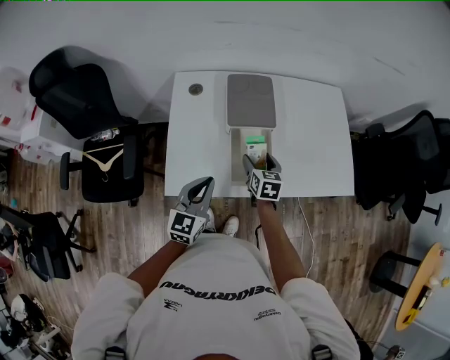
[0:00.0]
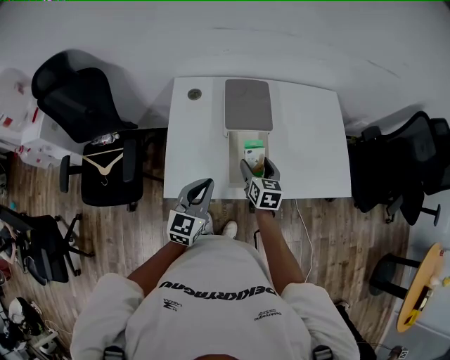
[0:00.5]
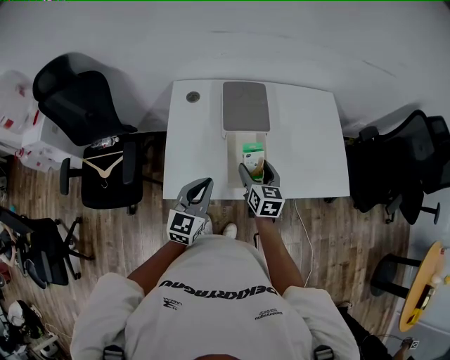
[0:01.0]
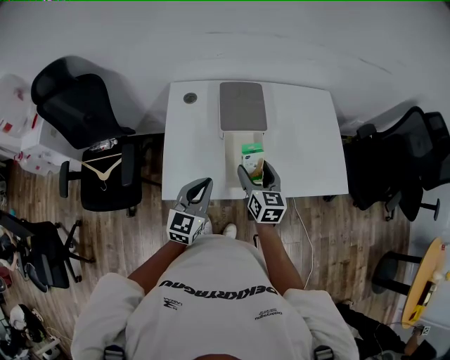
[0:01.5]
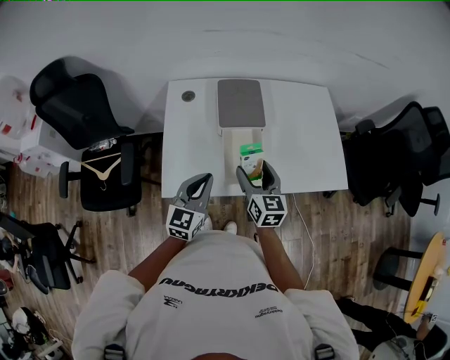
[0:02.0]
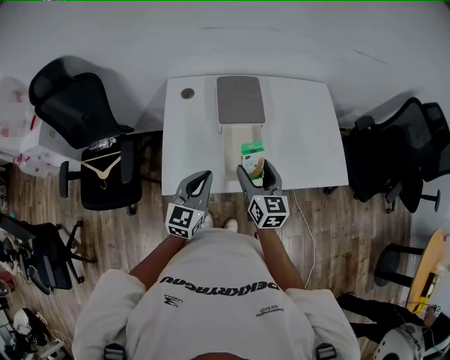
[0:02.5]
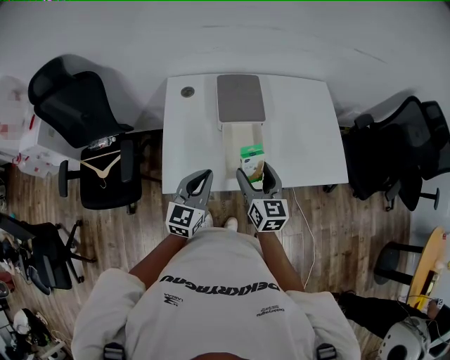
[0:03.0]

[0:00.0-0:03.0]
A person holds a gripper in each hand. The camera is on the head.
0:00.0 to 0:01.5: The right gripper is displaced upward and backward by approximately 10 cm.
0:01.5 to 0:03.0: The right gripper moves roughly 5 cm.

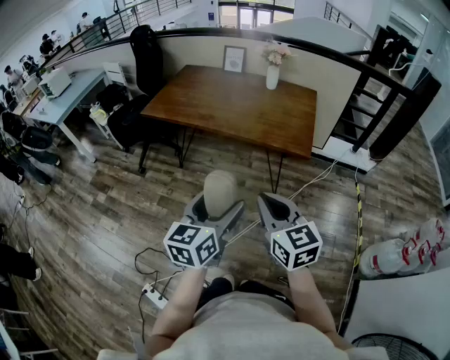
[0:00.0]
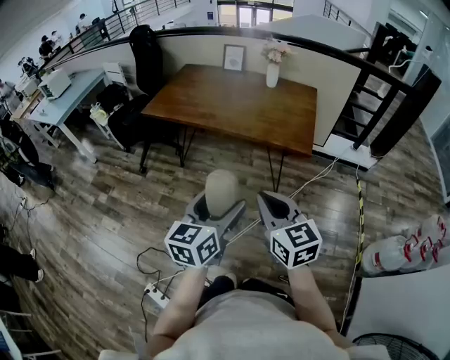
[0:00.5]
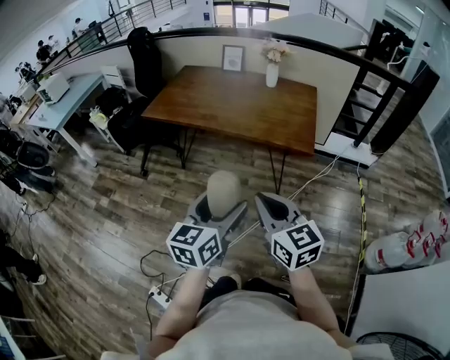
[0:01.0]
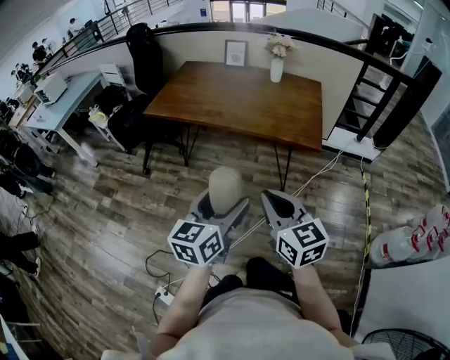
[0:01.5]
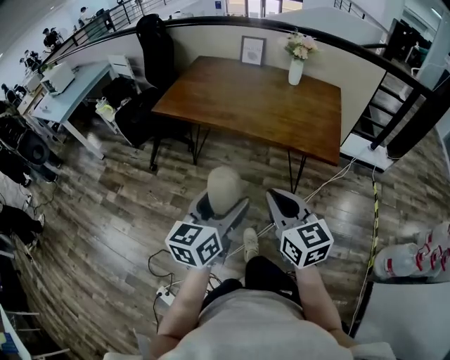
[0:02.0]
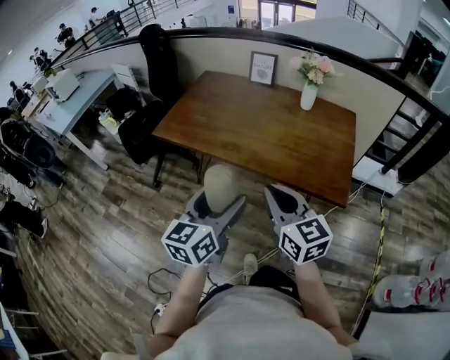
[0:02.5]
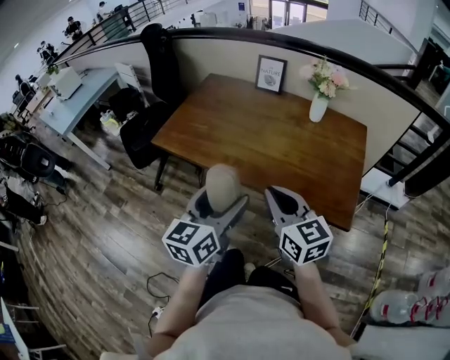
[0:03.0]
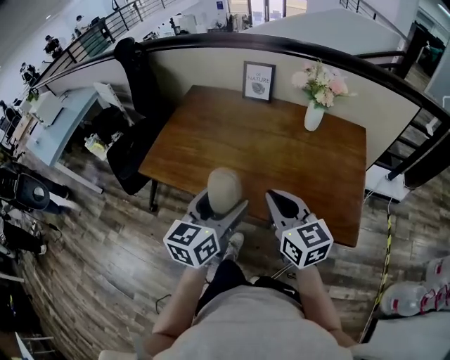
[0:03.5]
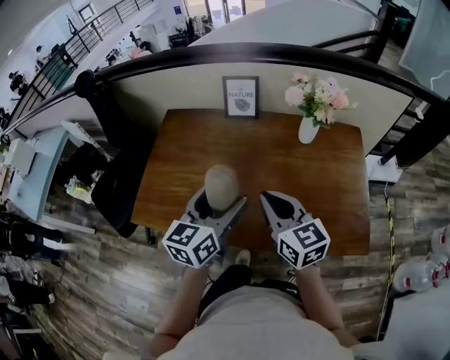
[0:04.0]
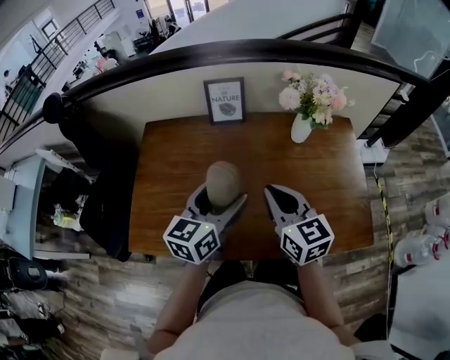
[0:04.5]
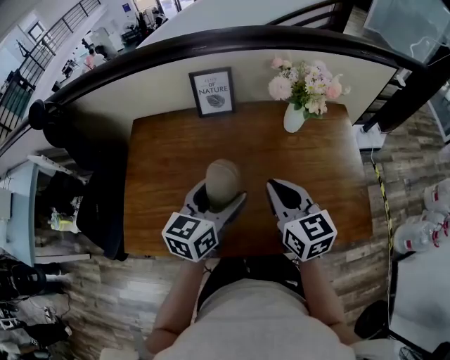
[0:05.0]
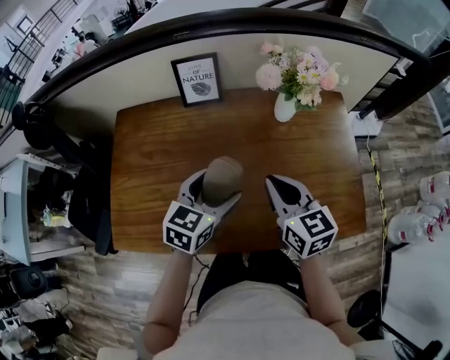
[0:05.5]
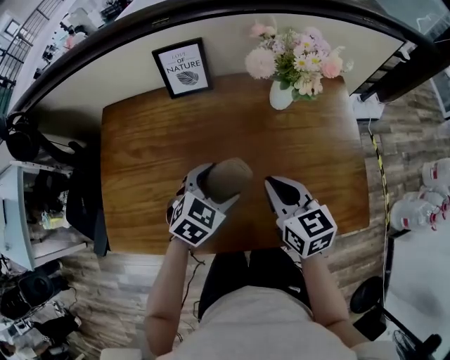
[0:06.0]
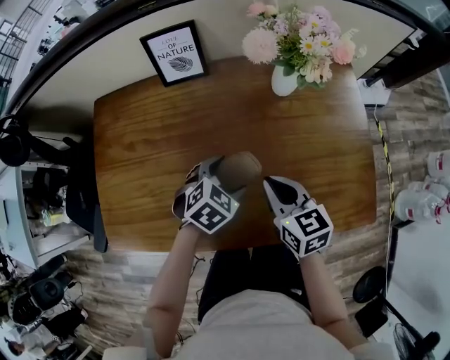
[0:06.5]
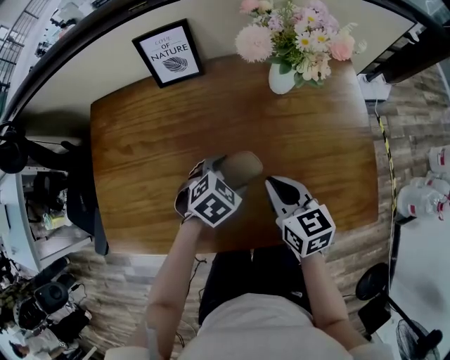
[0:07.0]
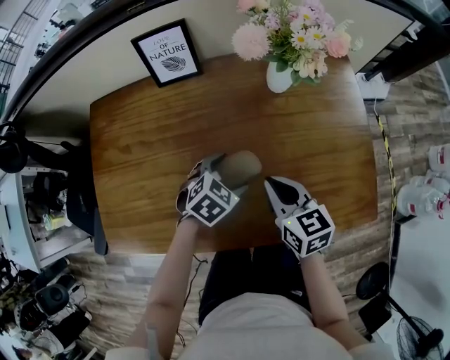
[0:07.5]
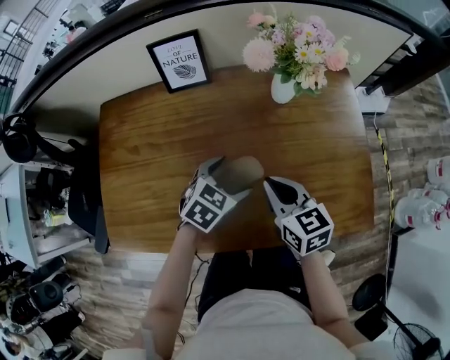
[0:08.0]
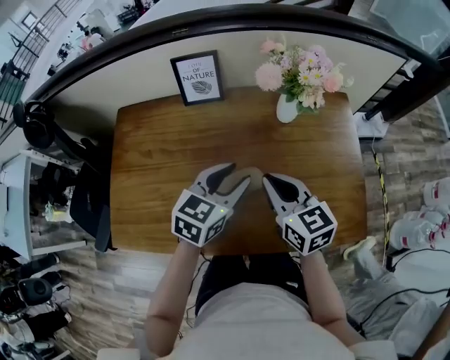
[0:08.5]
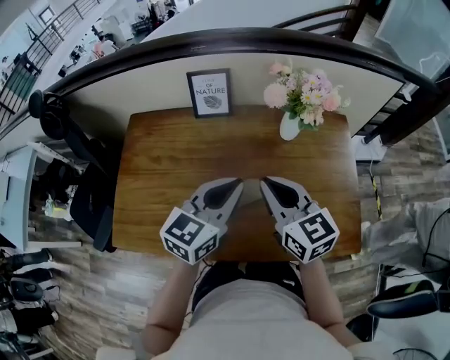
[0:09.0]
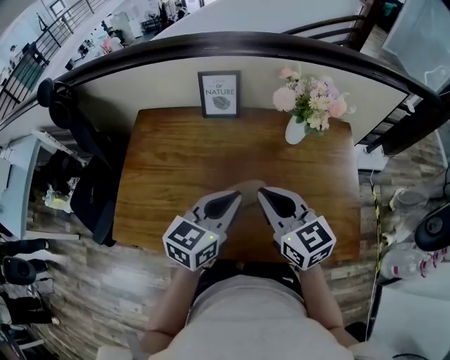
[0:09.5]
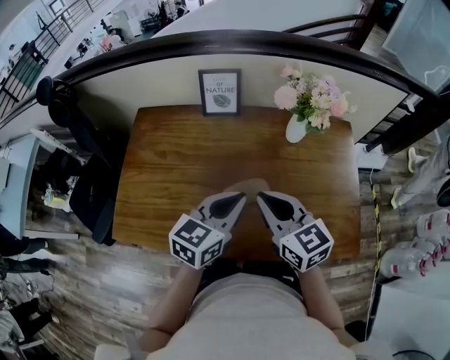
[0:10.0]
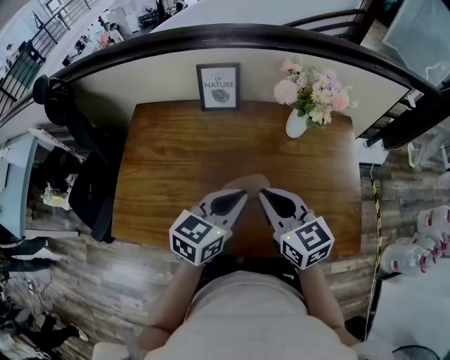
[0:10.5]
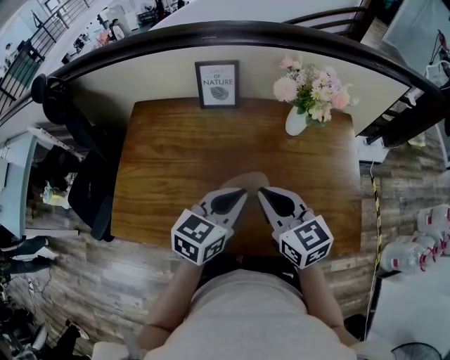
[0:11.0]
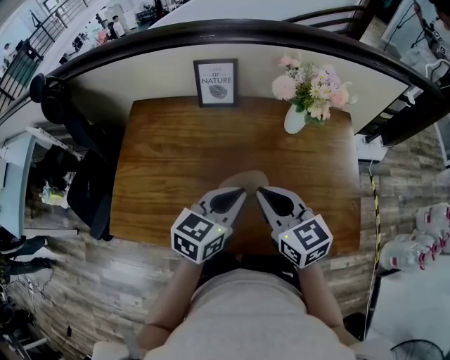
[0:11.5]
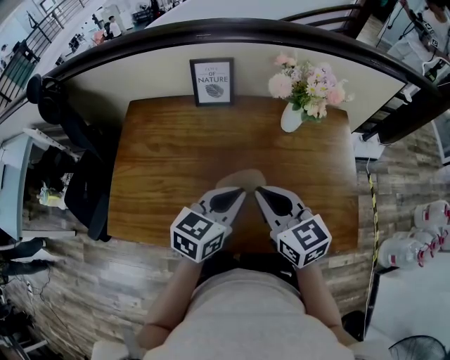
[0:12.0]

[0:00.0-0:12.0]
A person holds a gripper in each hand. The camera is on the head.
0:00.0 to 0:02.0: Both grippers move forward and to the left, approximately 10 cm.
0:02.0 to 0:04.0: The two grippers travel together, forward, some 50 cm.
0:04.0 to 0:06.0: The left gripper goes about 20 cm downward and forward, and tilts its fingers roughly 40 degrees downward. The right gripper shifts some 15 cm forward, downward and to the right, and changes its angle by some 20 degrees.
0:08.0 to 0:10.0: The left gripper shifts some 15 cm upward, rotates roughly 40 degrees, and closes, while the right gripper travels upward and to the left by about 15 cm.
0:10.0 to 0:12.0: The grippers stay close to where they were, moving slightly.

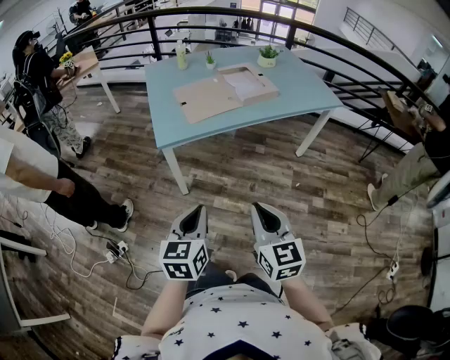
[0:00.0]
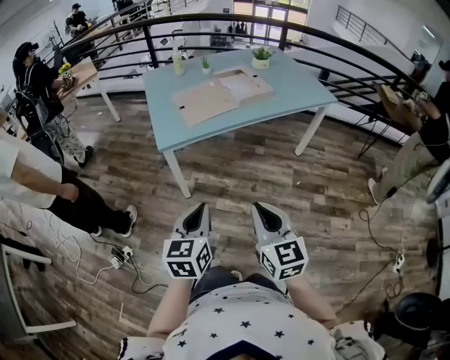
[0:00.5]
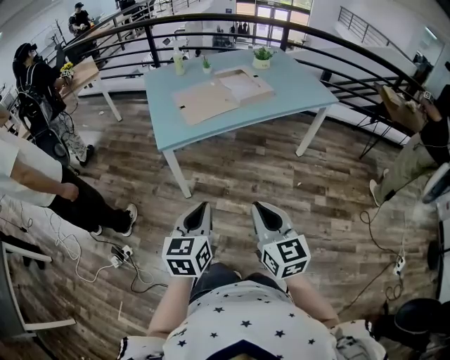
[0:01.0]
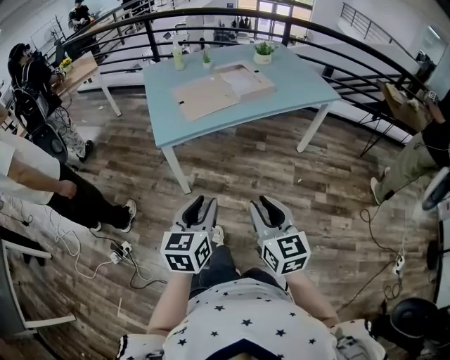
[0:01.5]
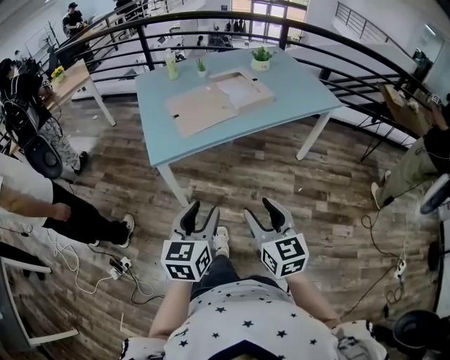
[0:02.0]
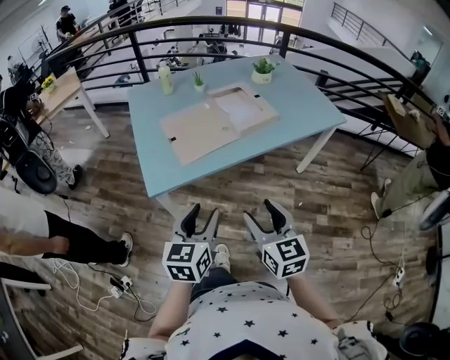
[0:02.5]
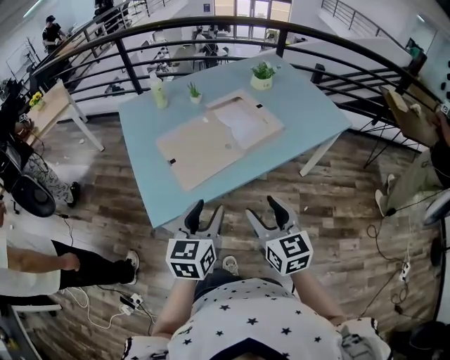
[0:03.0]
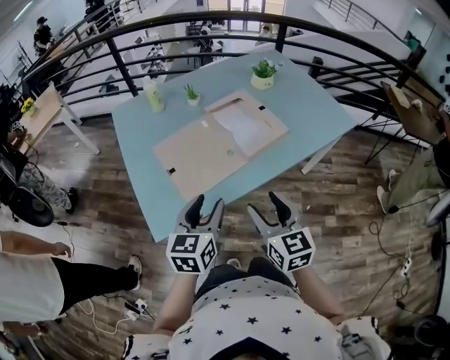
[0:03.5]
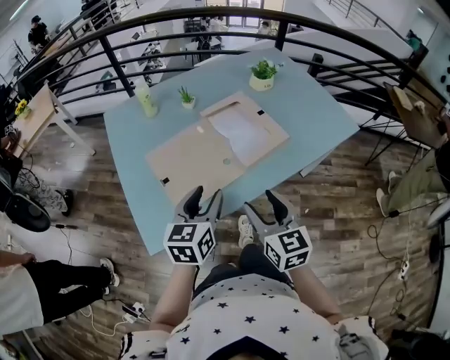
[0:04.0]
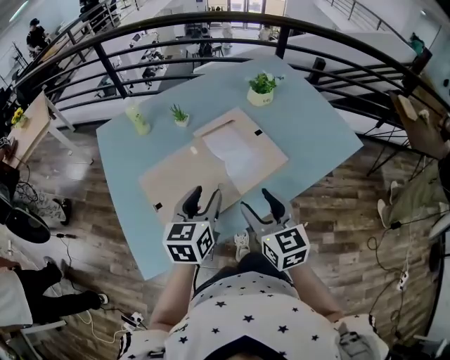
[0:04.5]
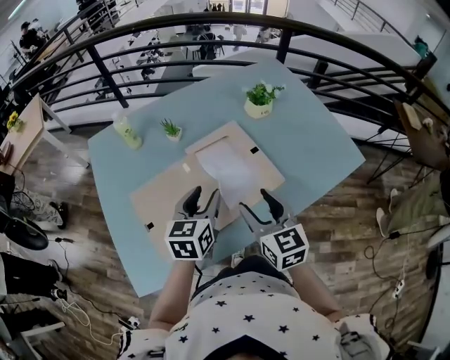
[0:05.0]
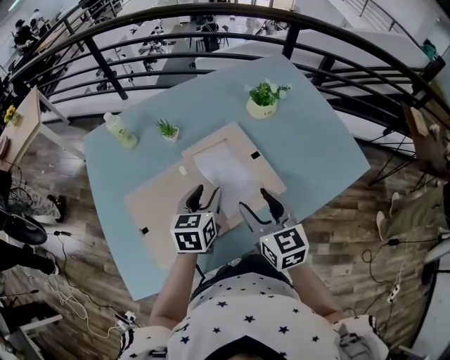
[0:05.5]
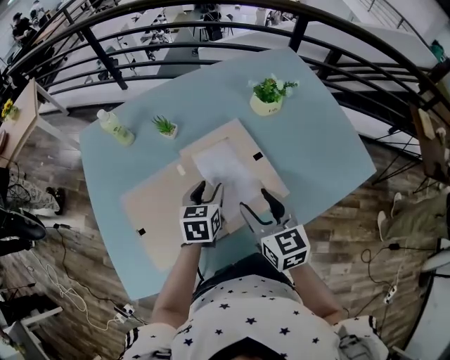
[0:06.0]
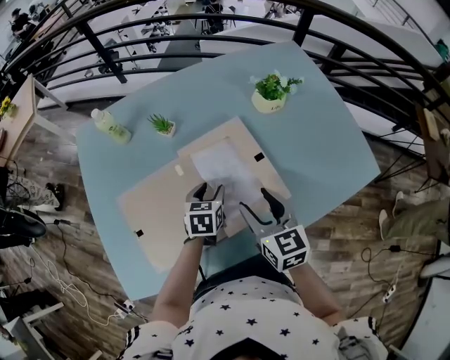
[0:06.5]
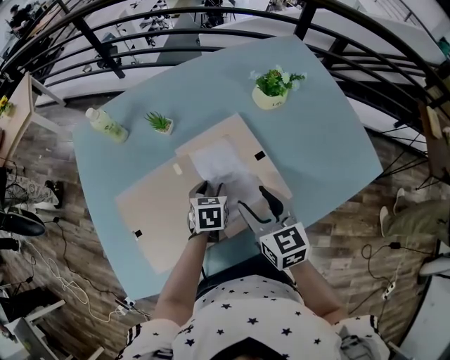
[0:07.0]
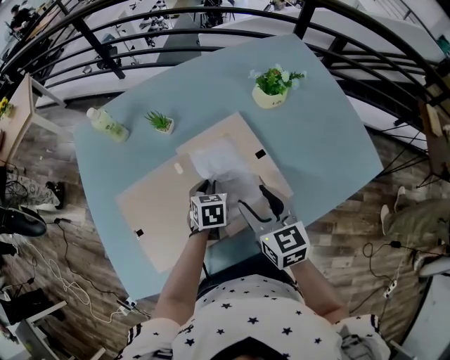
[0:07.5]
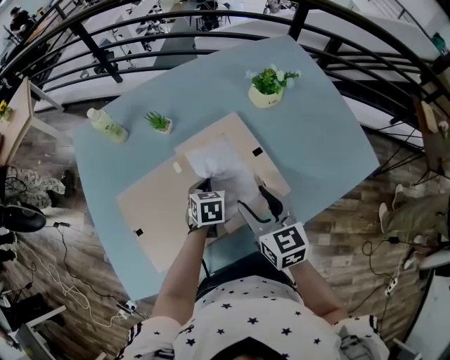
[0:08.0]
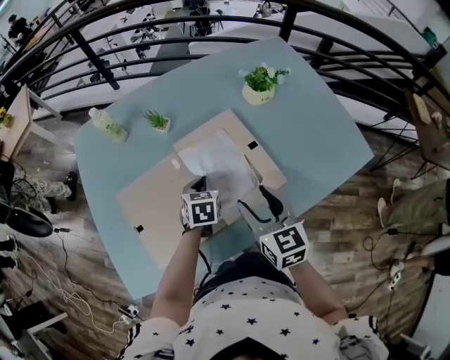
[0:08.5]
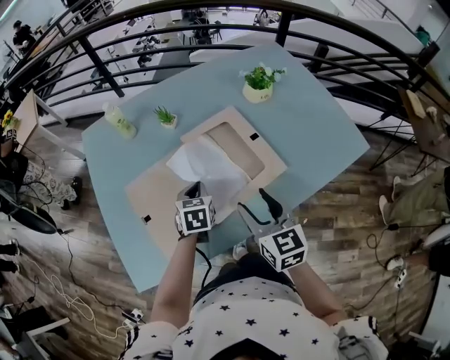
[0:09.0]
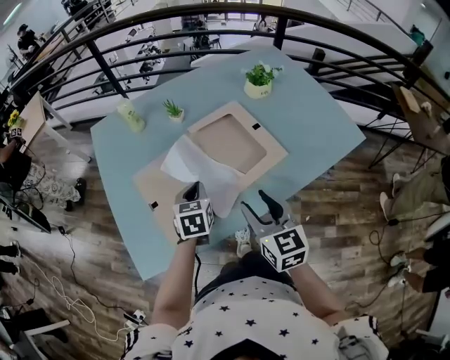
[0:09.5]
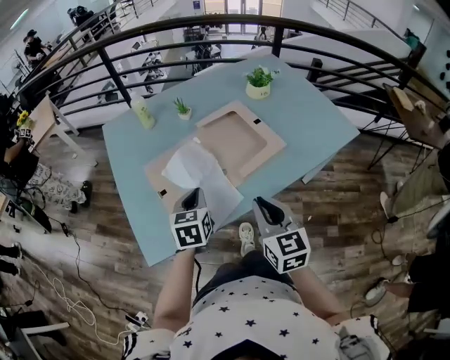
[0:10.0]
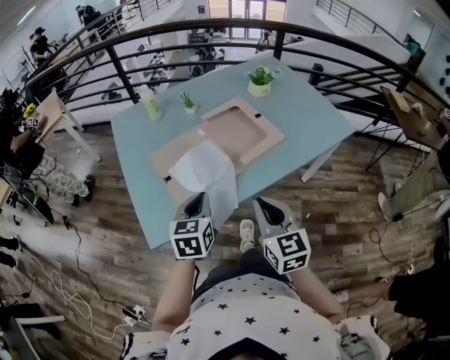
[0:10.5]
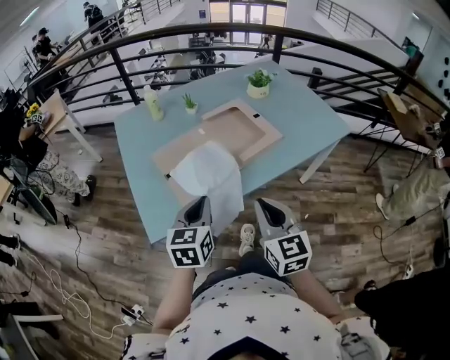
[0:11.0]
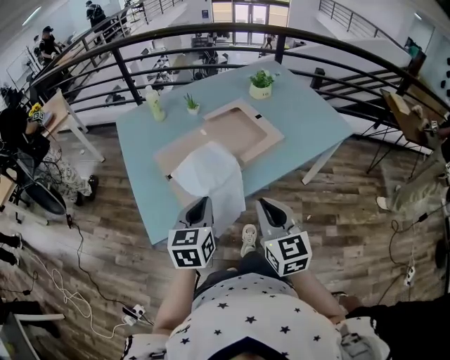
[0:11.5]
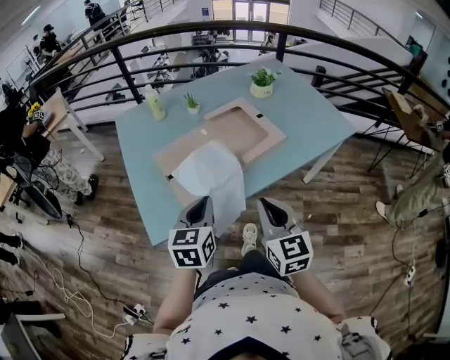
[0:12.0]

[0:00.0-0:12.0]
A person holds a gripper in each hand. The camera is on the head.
0:00.0 to 0:02.0: Both grippers move forward, approximately 5 cm. The right gripper opens its fingers. The left gripper opens.
0:02.0 to 0:04.0: Both grippers travel together forward, approximately 40 cm.
0:04.0 to 0:06.0: The right gripper is displaced forward by some 25 cm; the left gripper heads forward and downward, covering about 30 cm.
0:06.0 to 0:08.0: The left gripper travels downward by some 10 cm, and closes.
0:08.0 to 0:10.0: The left gripper travels backward, upward and to the left by some 30 cm, and rotates about 20 degrees. The right gripper heads backward, covering some 25 cm, and closes up.
0:10.0 to 0:12.0: The left gripper shifts roughly 15 cm backward and upward, while the right gripper shifts some 10 cm backward.
